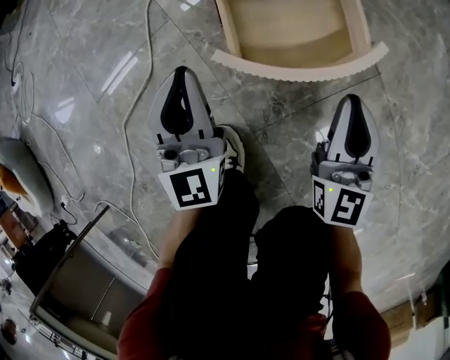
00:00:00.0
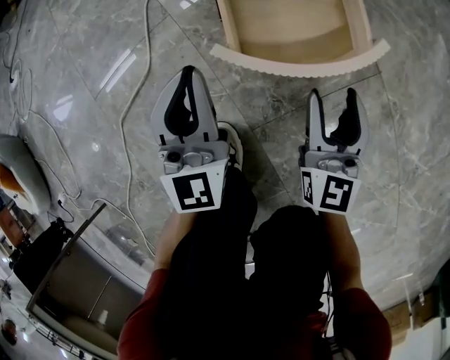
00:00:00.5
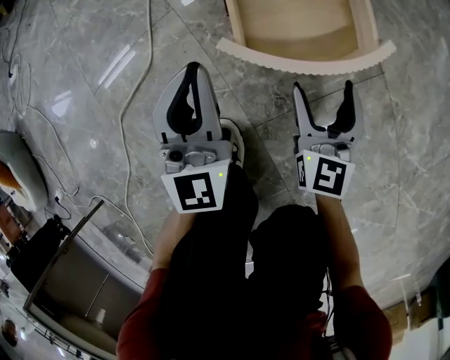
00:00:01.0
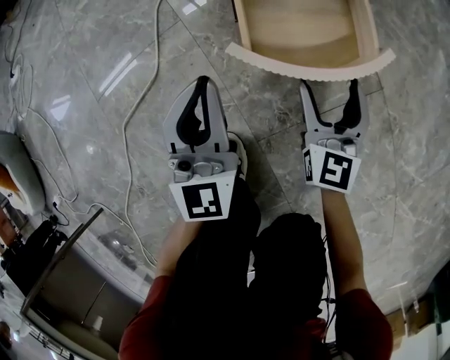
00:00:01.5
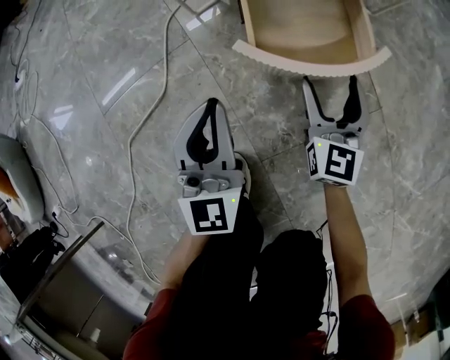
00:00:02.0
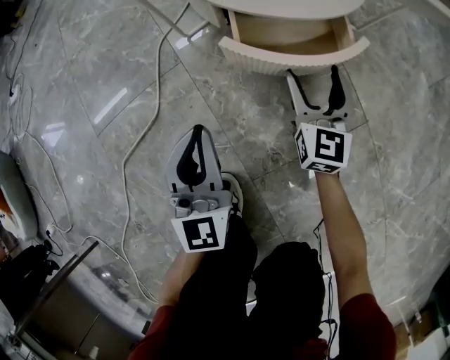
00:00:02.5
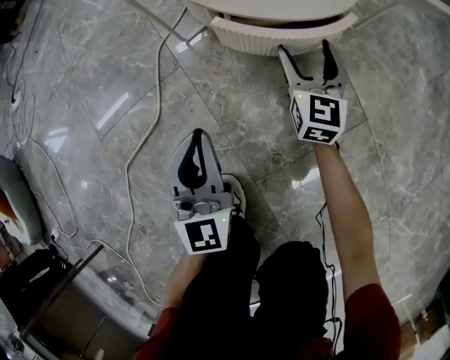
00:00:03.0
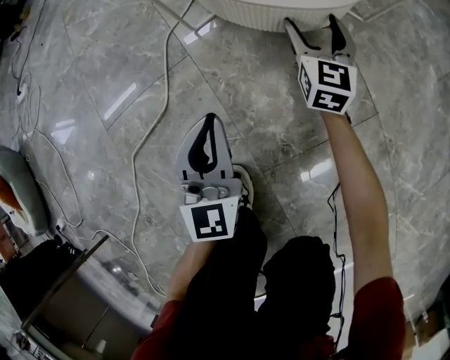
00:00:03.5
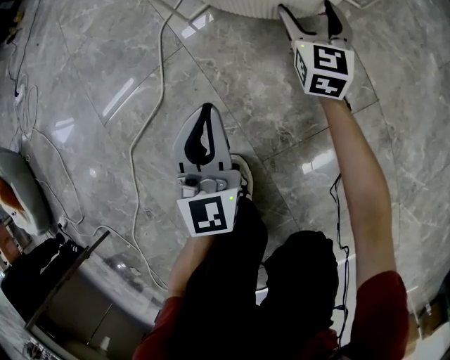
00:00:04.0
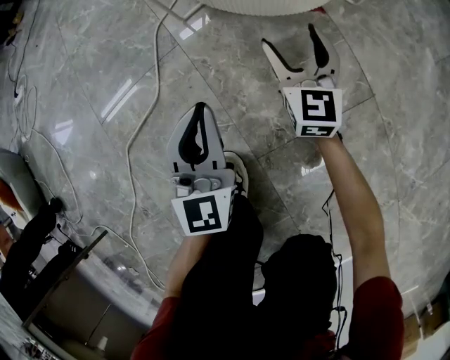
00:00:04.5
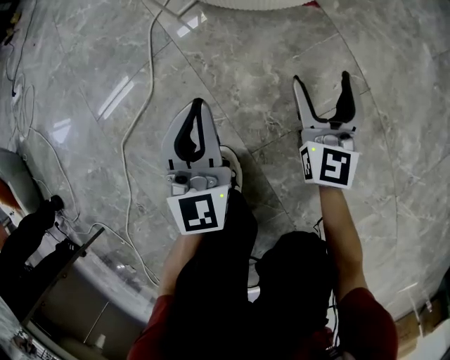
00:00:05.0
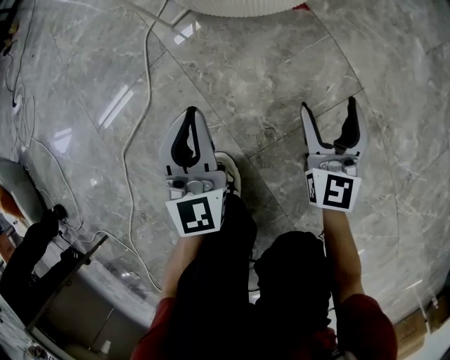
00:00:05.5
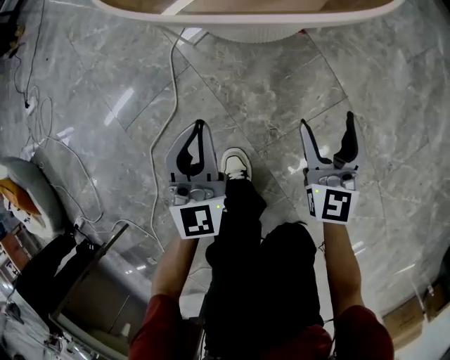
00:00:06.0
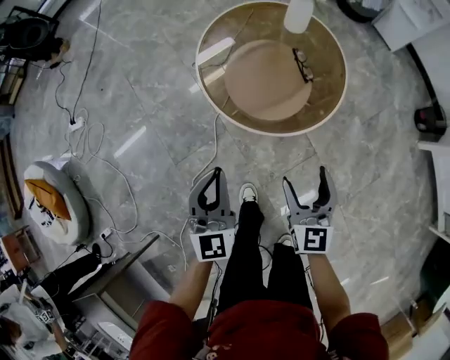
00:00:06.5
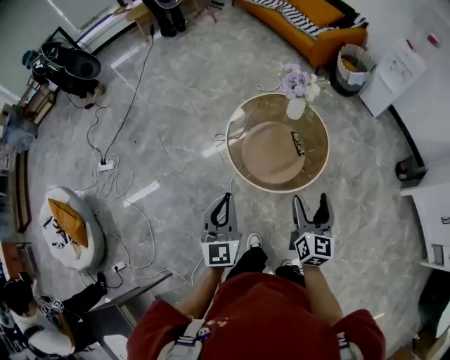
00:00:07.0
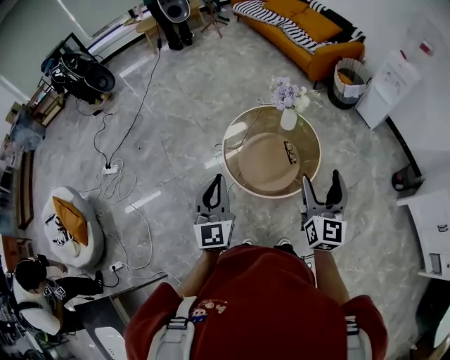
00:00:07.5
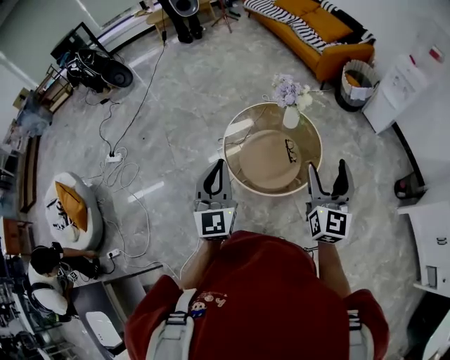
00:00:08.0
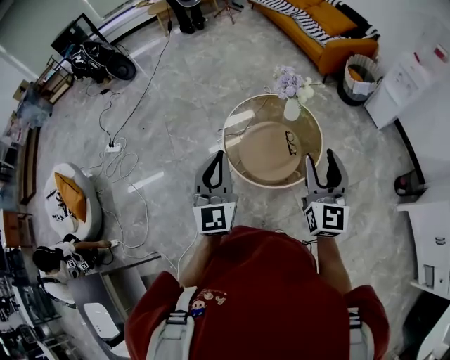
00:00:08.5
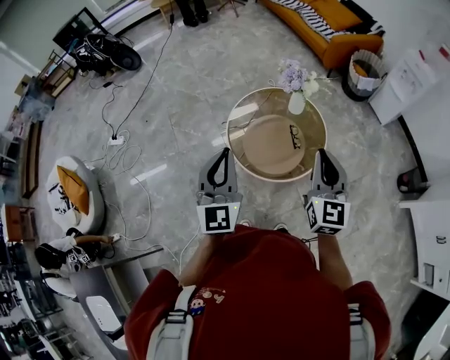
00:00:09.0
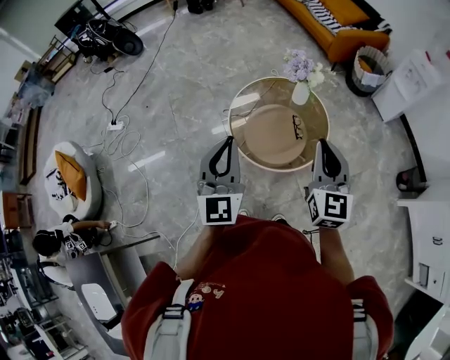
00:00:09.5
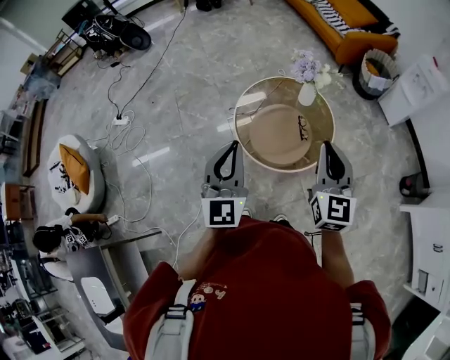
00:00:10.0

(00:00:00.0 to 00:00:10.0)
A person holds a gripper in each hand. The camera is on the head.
00:00:00.0 - 00:00:02.0: The right gripper shifts approximately 10 cm forward, downward and to the left, and opens its fingers.
00:00:02.0 - 00:00:04.0: The right gripper moves forward, approximately 15 cm.
00:00:04.0 - 00:00:06.0: The left gripper heads upward, covering some 15 cm. Meanwhile the right gripper heads backward and upward, covering about 30 cm.
00:00:06.0 - 00:00:08.0: Both grippers travel together upward, roughly 70 cm.
00:00:08.0 - 00:00:10.0: The right gripper travels to the left by some 5 cm, and closes up.

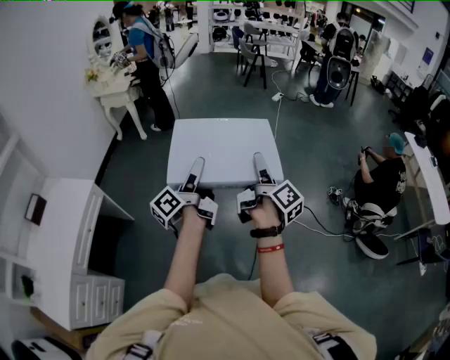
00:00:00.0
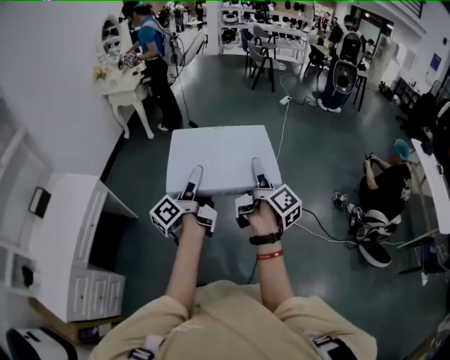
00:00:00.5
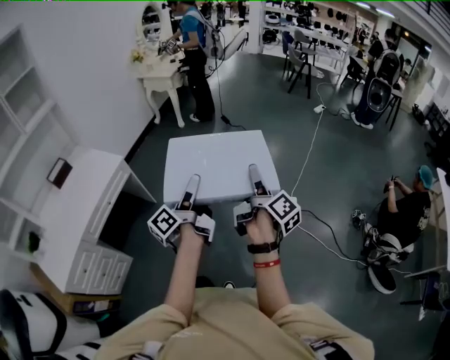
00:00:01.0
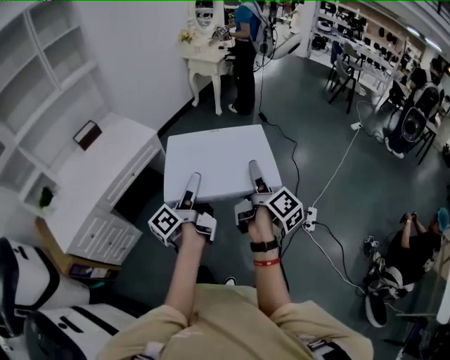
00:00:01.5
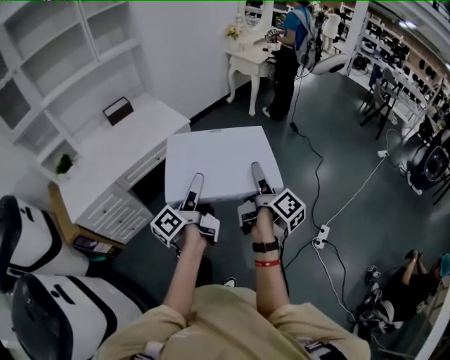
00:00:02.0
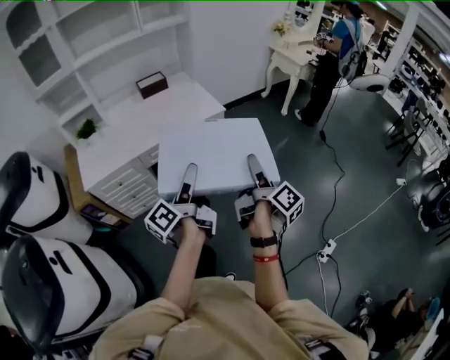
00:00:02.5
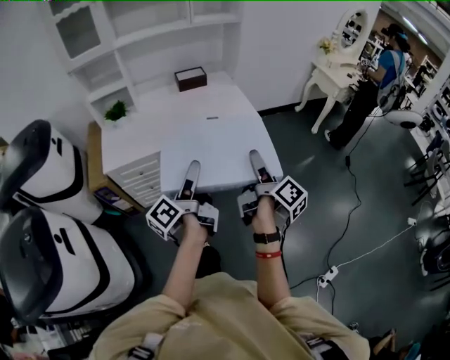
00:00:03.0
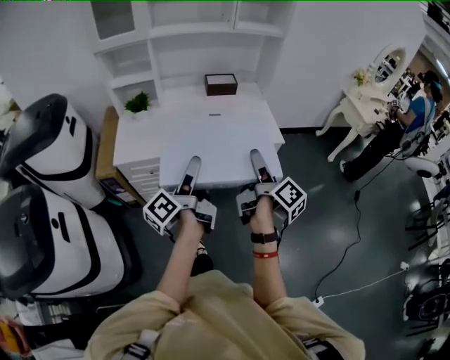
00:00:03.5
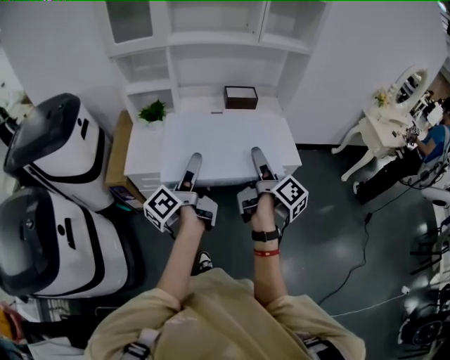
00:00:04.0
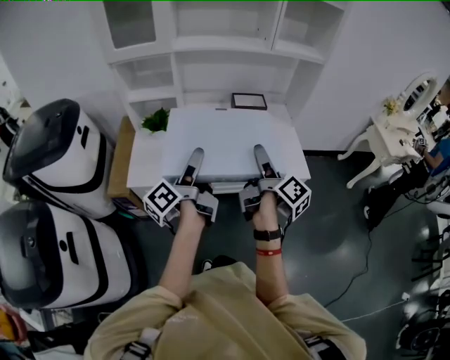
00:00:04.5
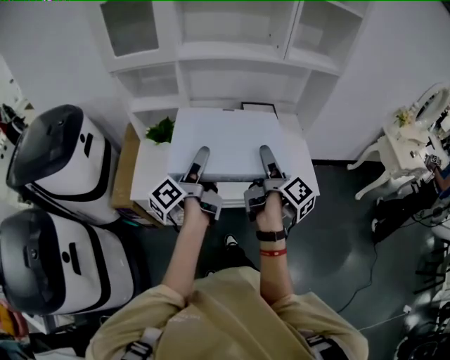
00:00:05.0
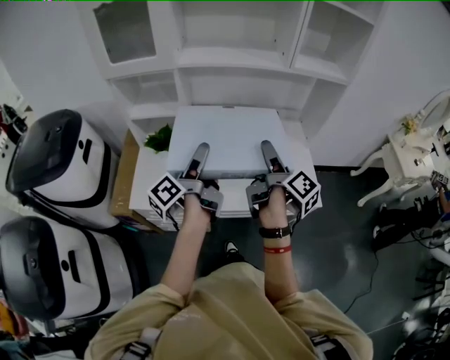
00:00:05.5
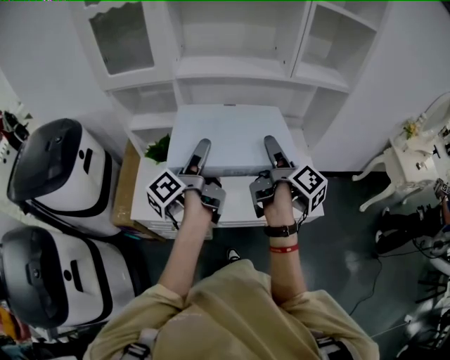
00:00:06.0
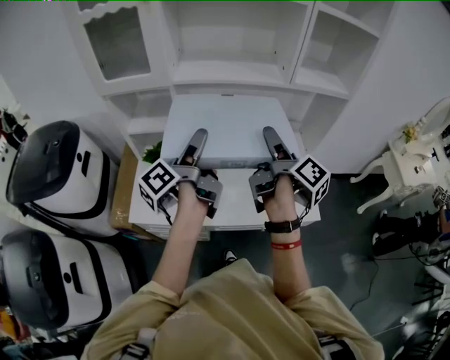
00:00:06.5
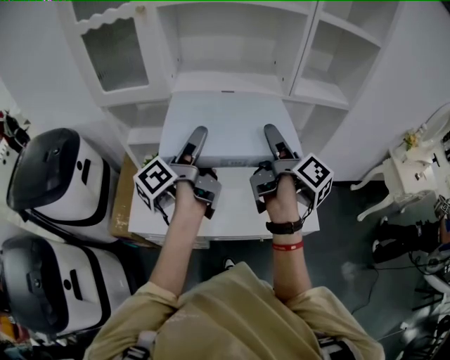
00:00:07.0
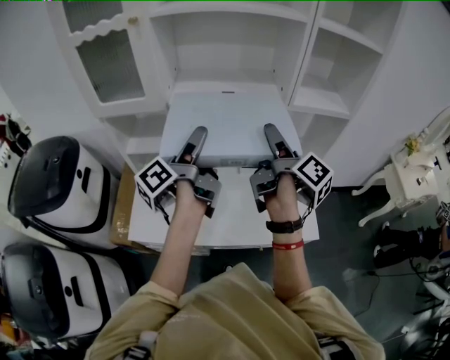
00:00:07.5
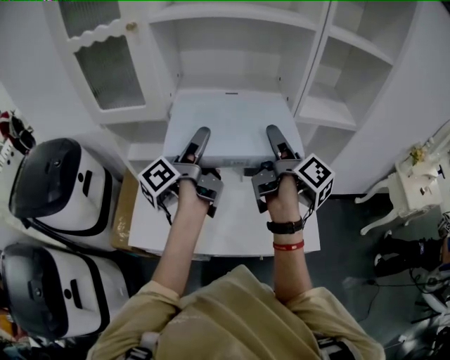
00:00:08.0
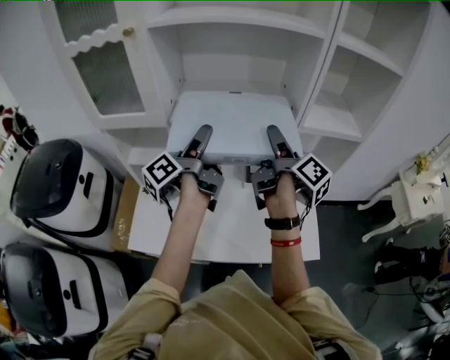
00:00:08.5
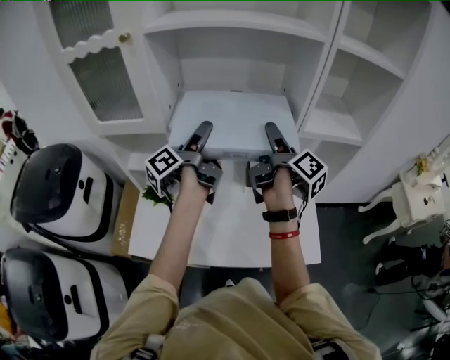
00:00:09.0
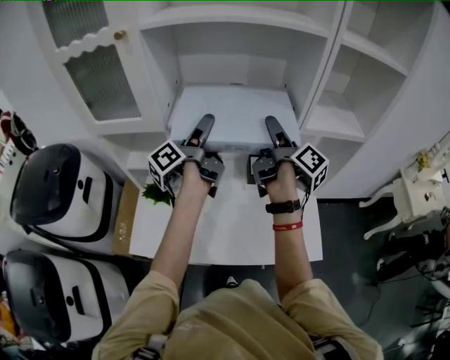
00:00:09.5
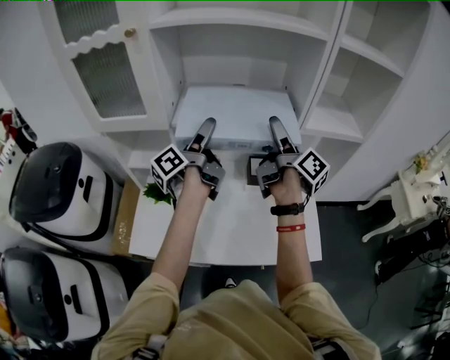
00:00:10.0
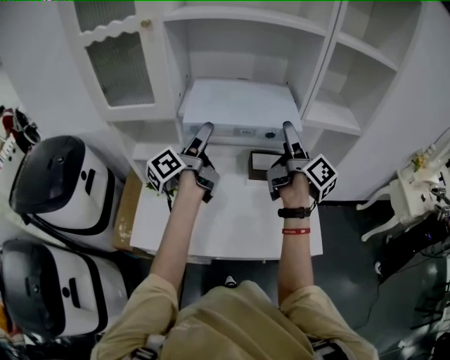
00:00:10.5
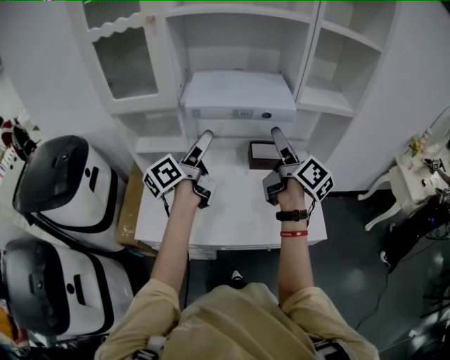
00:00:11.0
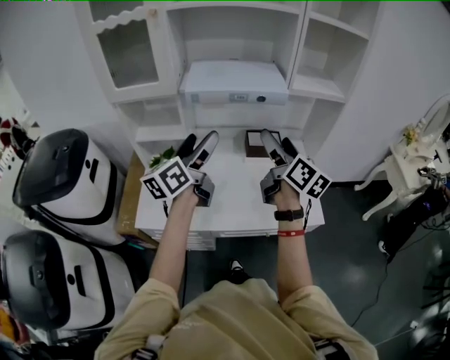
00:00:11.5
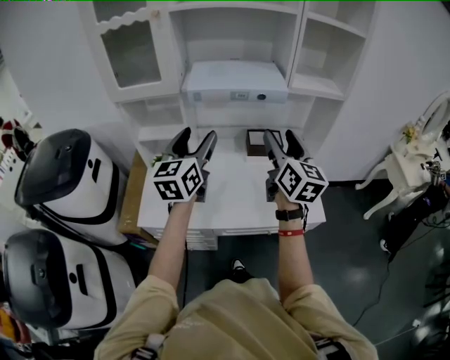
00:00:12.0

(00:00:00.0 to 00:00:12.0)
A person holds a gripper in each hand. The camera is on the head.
00:00:00.0 - 00:00:02.0: The right gripper moves about 30 cm, and rotates some 50 degrees, while the left gripper ends up about 30 cm from where it was, and changes its angle by about 40 degrees.
00:00:02.0 - 00:00:04.0: Both grippers are carried about 50 cm. The left gripper turns by approximately 40 degrees, while the right gripper changes its angle by approximately 40 degrees.
00:00:04.0 - 00:00:06.0: The two grippers go about 30 cm forward.
00:00:06.0 - 00:00:08.0: The two grippers go about 15 cm forward and upward.
00:00:08.0 - 00:00:10.0: The two grippers go some 10 cm forward.
00:00:10.0 - 00:00:12.0: Both grippers travel together backward, about 25 cm. The right gripper rotates around the line of its fingers by about 60 degrees, counterclockwise from behind, and closes its fingers; the left gripper rotates around the line of its fingers by approximately 70 degrees, clockwise from behind.

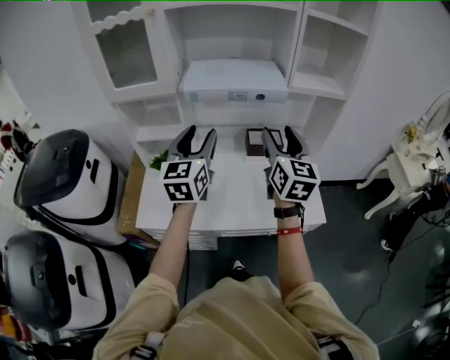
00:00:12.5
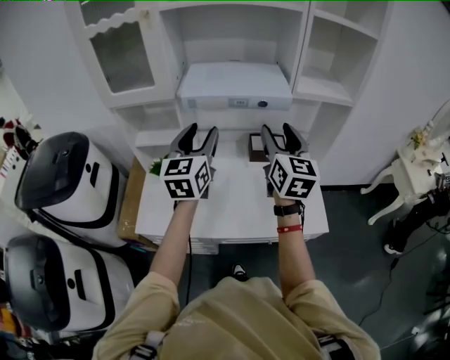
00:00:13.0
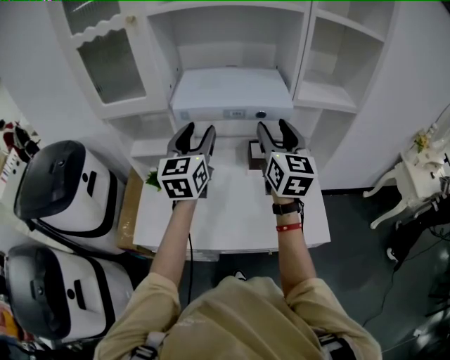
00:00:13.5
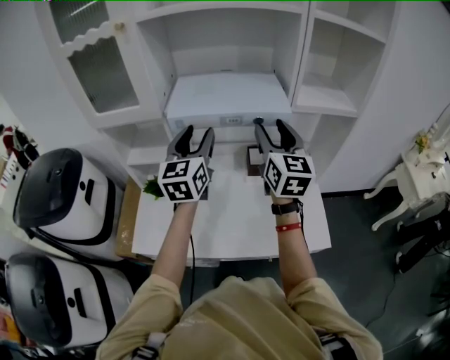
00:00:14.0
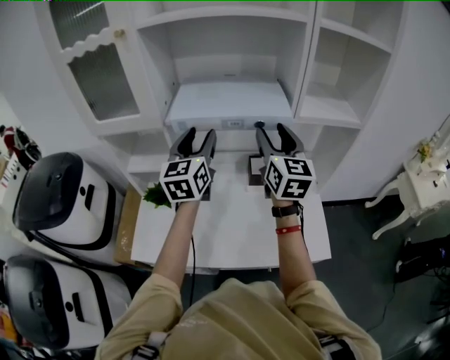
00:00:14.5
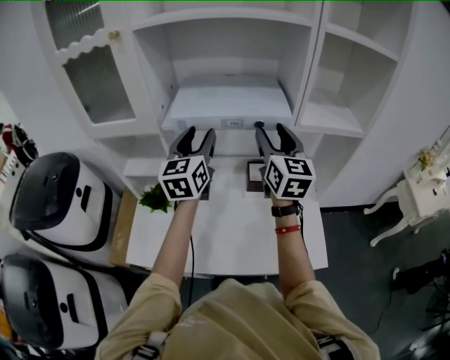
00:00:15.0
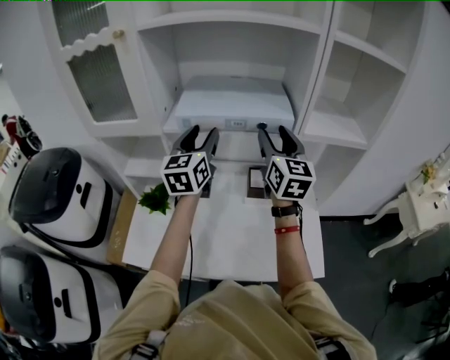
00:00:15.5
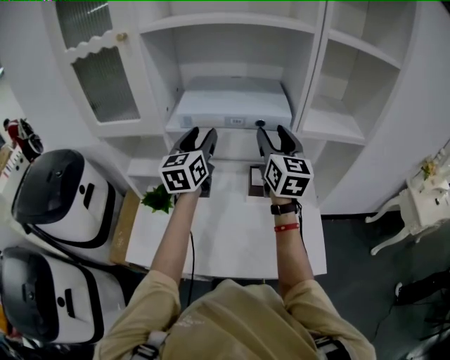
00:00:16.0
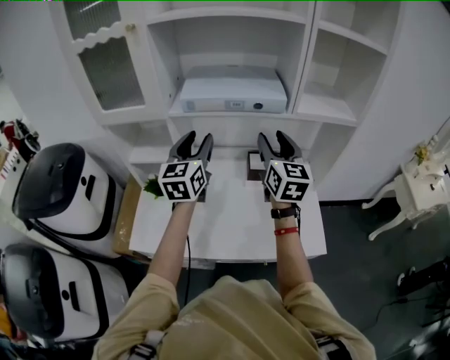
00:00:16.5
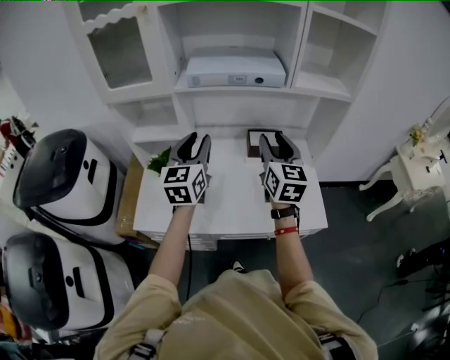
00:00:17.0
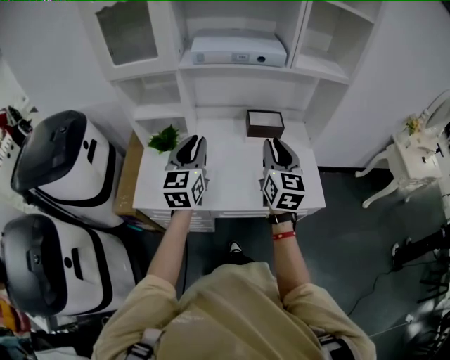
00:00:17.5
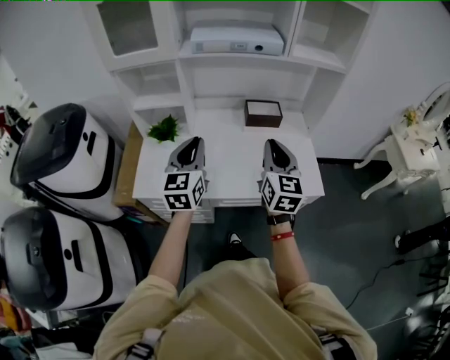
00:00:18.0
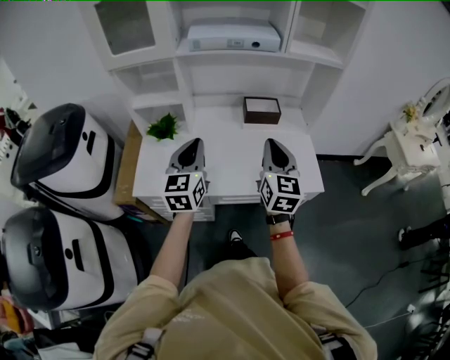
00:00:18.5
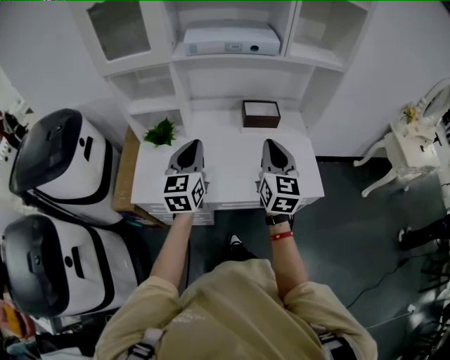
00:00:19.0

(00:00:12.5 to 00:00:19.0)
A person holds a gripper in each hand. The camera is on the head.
00:00:12.5 - 00:00:14.5: Both grippers travel together forward, approximately 15 cm.
00:00:14.5 - 00:00:17.0: The left gripper heads backward, covering approximately 15 cm, while the right gripper is displaced backward and downward by about 15 cm.
00:00:17.0 - 00:00:19.0: The grippers both shift backward and downward by approximately 15 cm.
